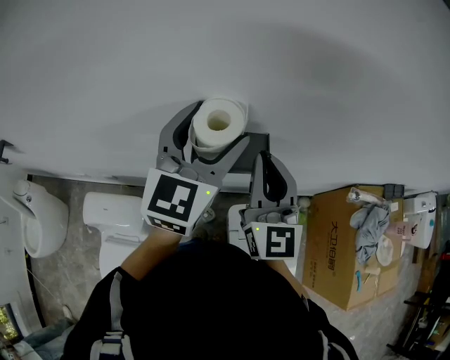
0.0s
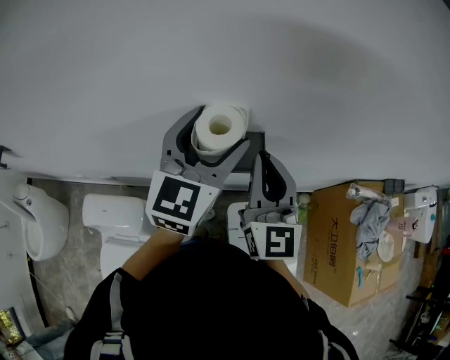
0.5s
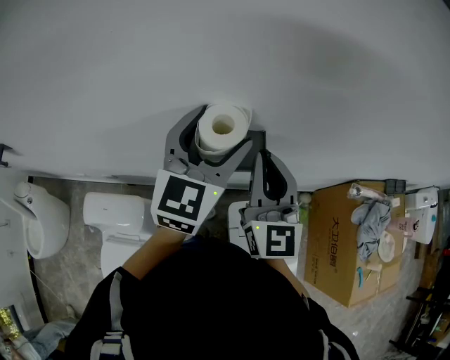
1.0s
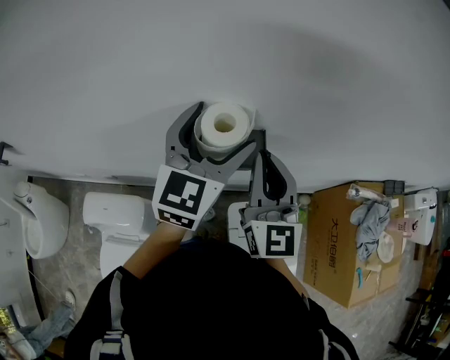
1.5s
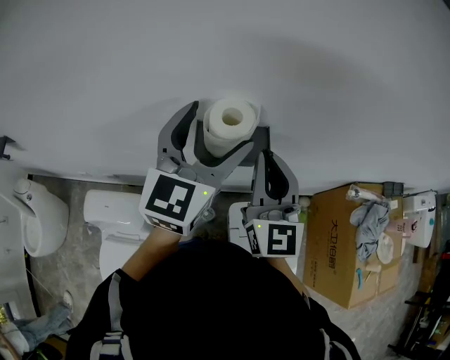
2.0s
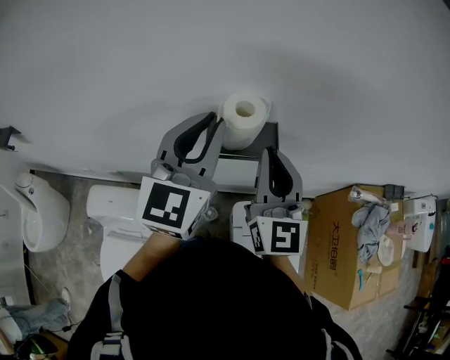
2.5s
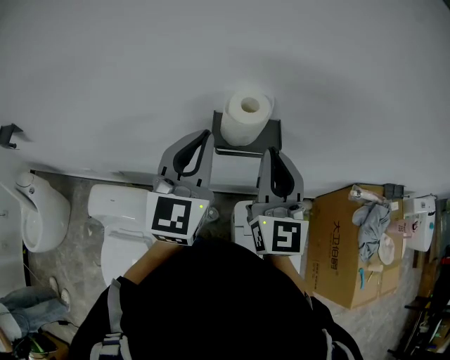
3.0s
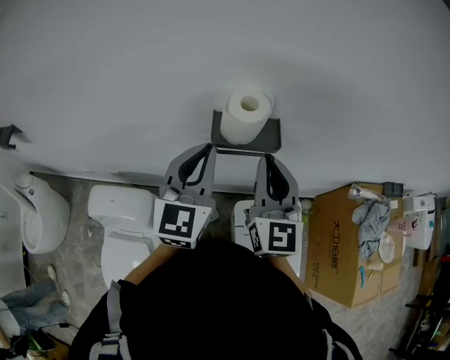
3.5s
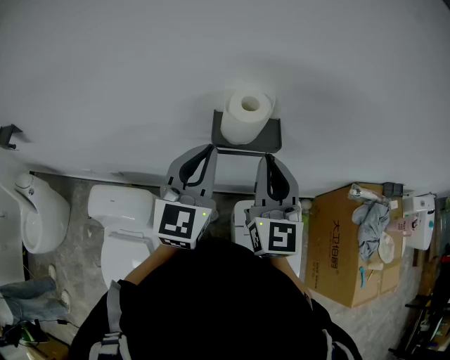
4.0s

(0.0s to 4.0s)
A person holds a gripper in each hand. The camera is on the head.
0.0s - 2.0s: The grippers move only a little.
2.0s - 4.0s: The left gripper is displaced backward, downward and to the left by about 10 cm, and closes up.

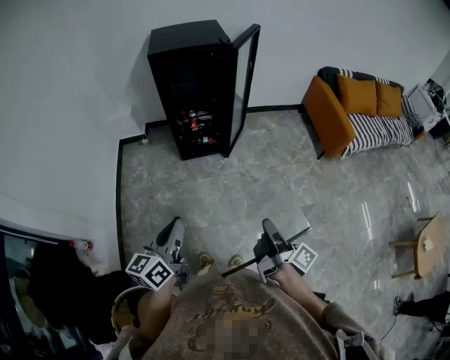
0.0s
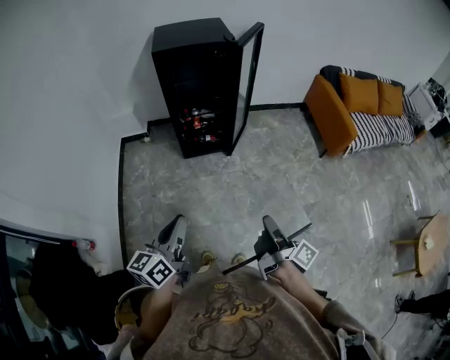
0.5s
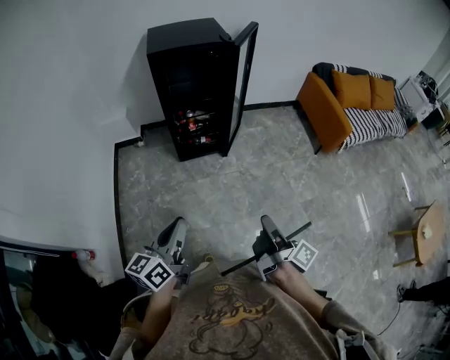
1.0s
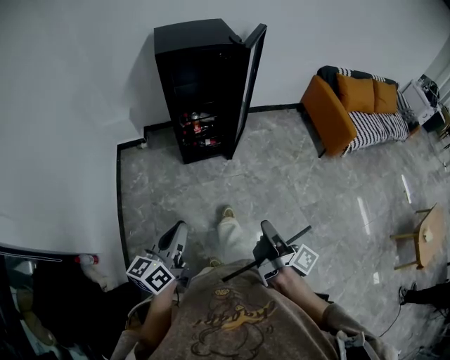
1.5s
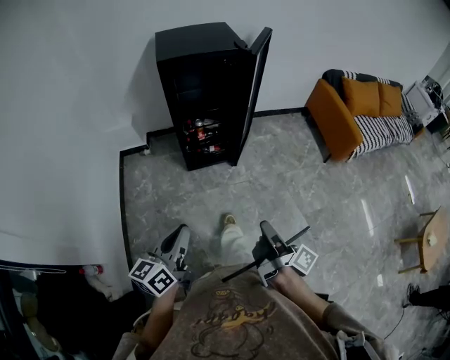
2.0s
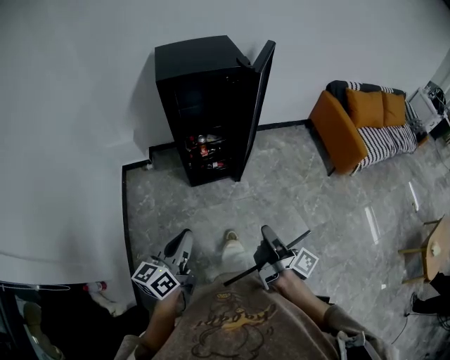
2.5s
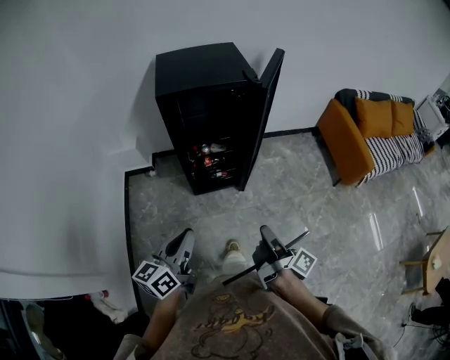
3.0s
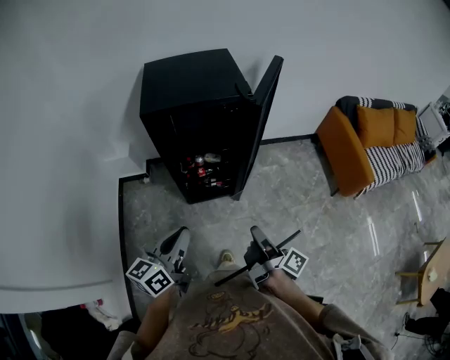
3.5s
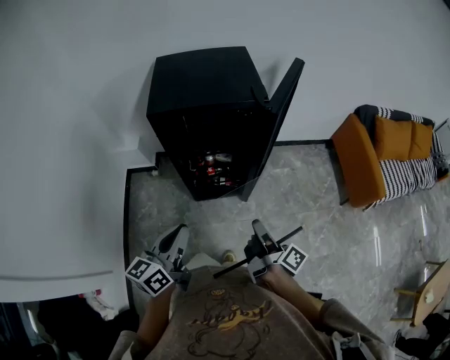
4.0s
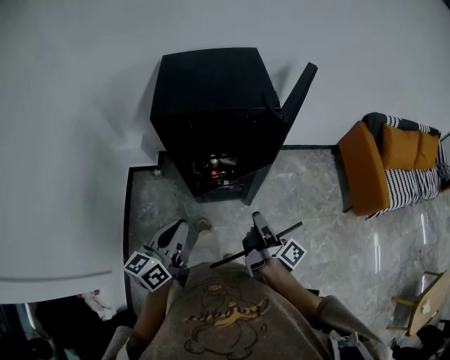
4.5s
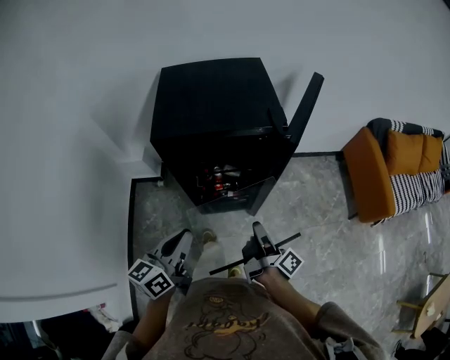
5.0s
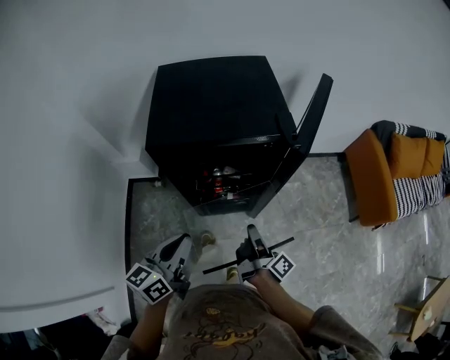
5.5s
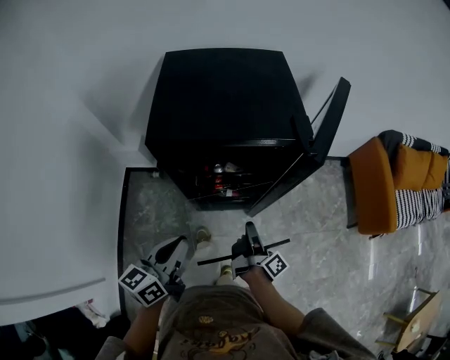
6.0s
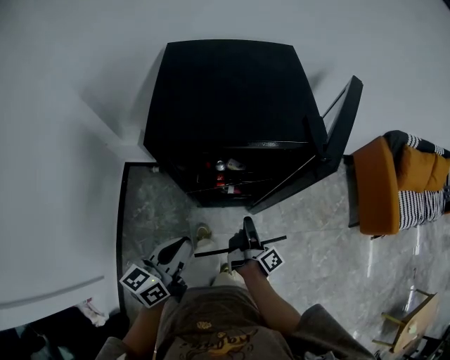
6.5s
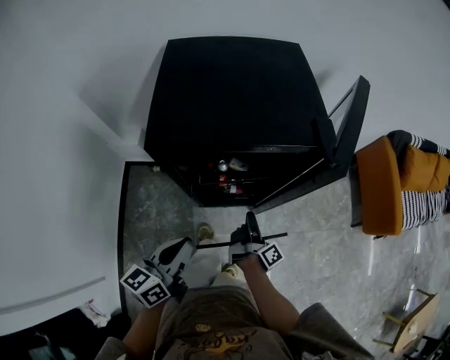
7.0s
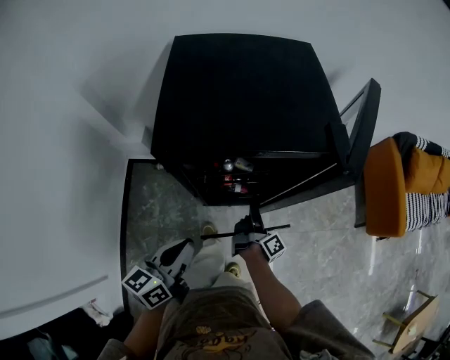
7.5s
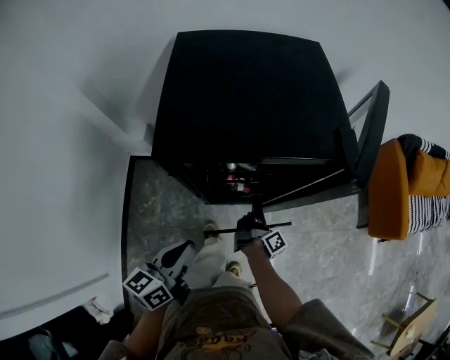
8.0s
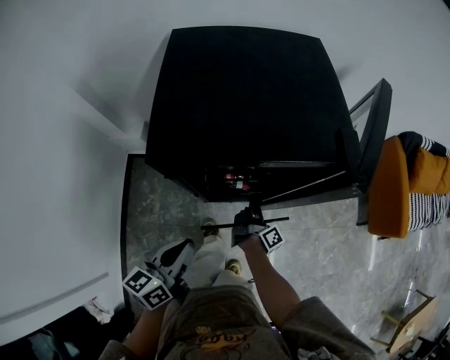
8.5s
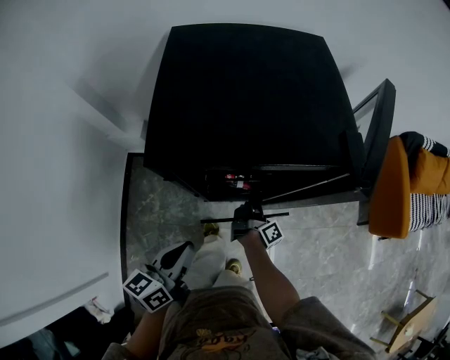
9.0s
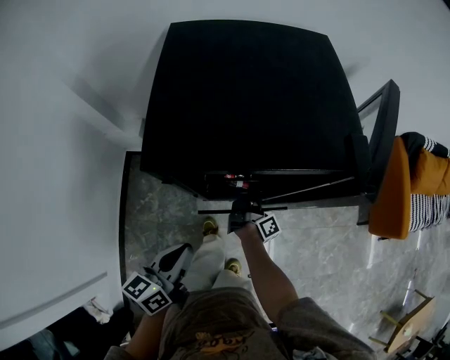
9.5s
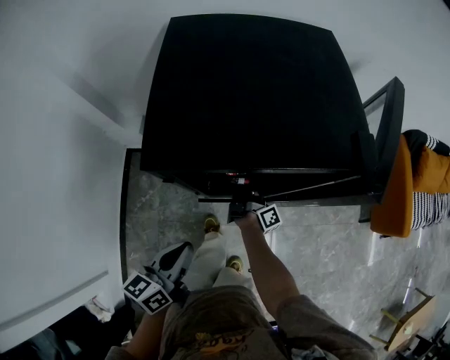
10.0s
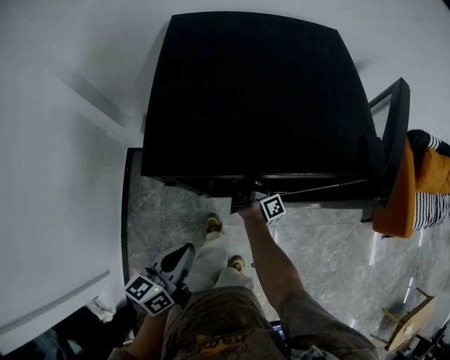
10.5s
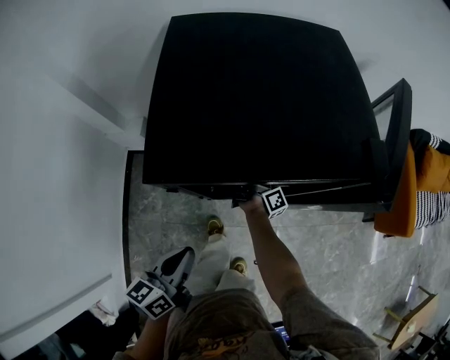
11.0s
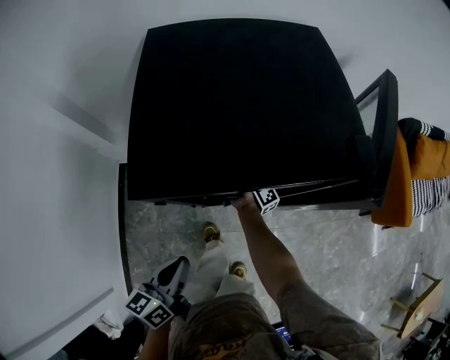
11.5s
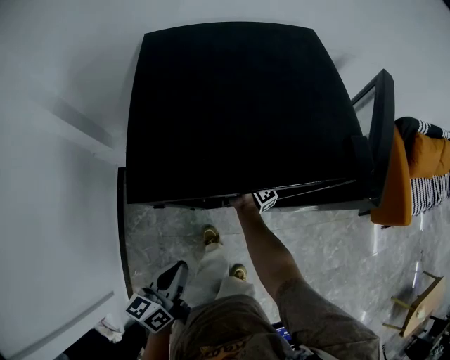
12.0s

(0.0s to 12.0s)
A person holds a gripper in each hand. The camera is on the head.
0.0s - 2.0s: The left gripper ends up some 10 cm from where it was.
2.0s - 4.0s: The left gripper shifts by roughly 30 cm.
4.0s - 6.0s: The left gripper shifts by about 15 cm.
6.0s - 8.0s: The left gripper shifts about 5 cm downward.

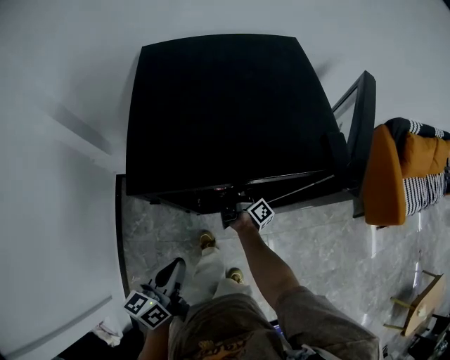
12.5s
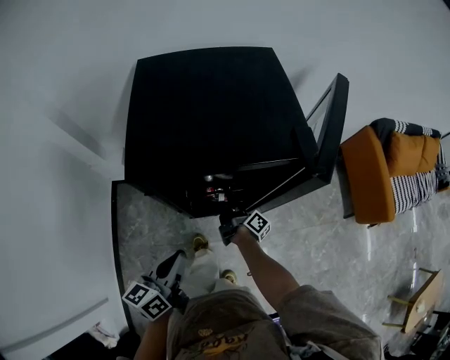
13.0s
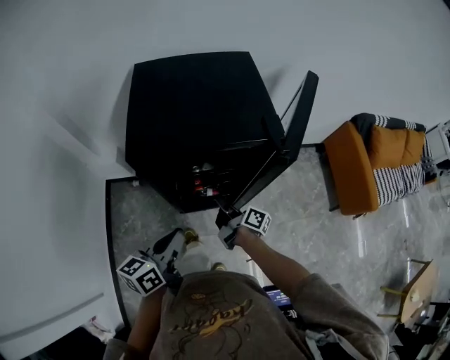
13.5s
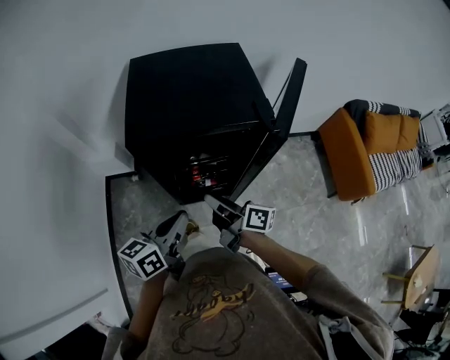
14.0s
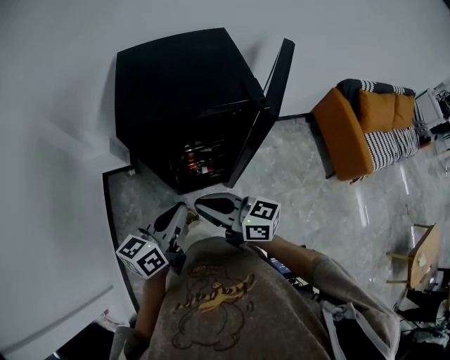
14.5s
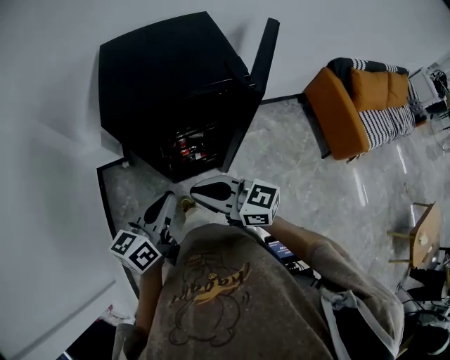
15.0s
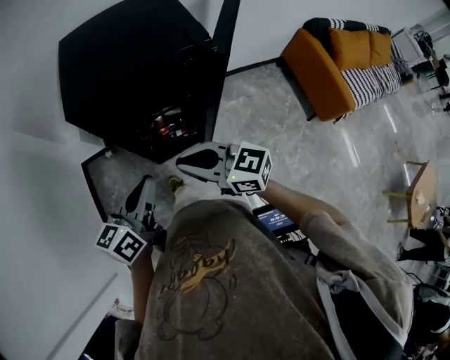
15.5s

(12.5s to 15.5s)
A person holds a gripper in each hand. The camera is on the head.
12.5s - 14.0s: The left gripper moves upward, about 10 cm.

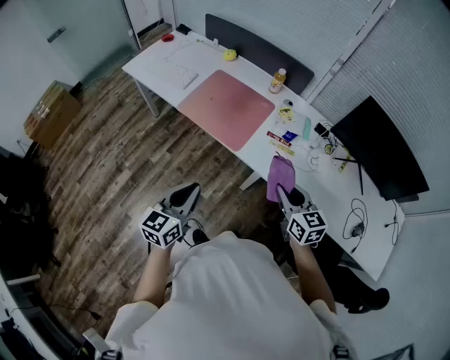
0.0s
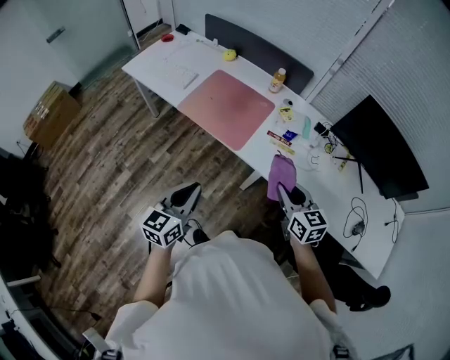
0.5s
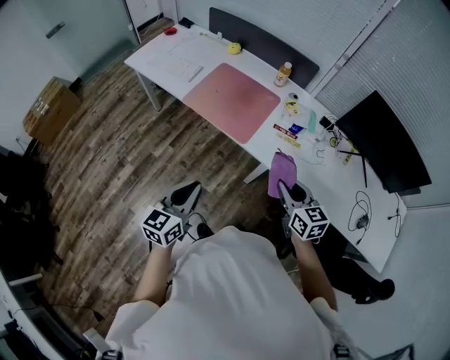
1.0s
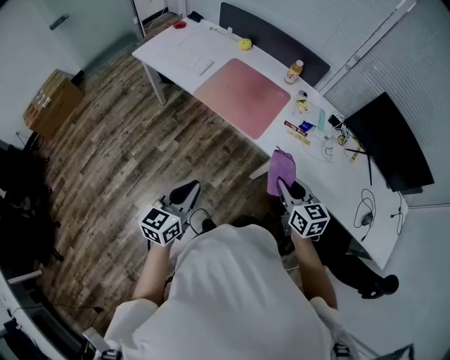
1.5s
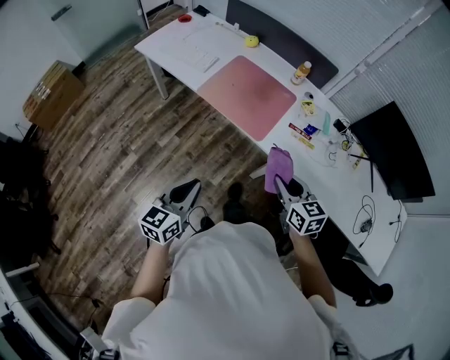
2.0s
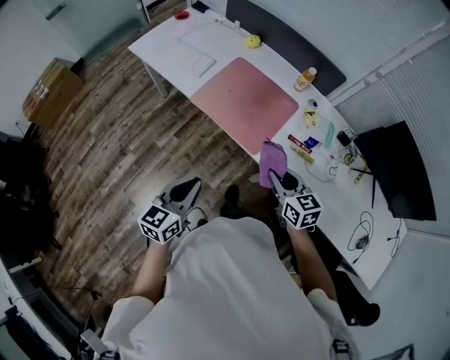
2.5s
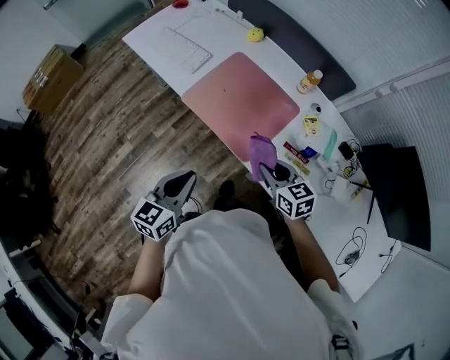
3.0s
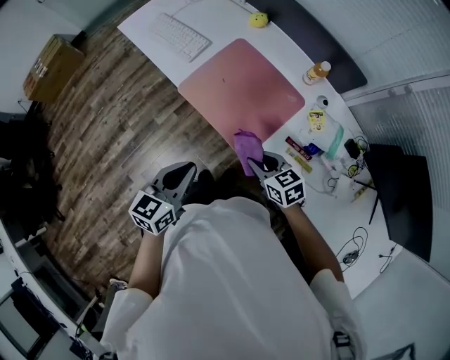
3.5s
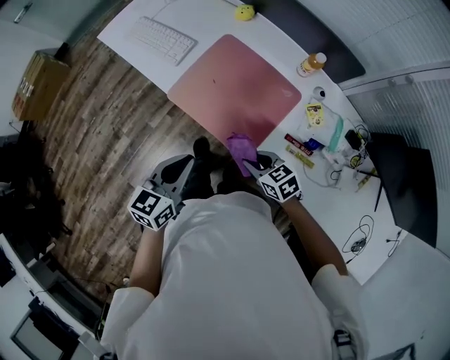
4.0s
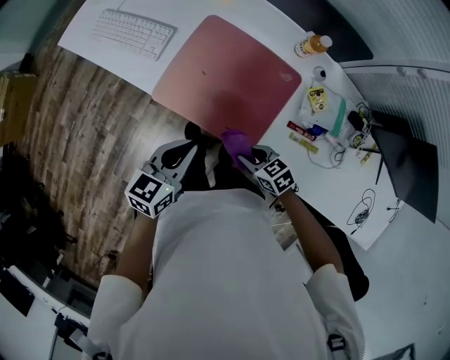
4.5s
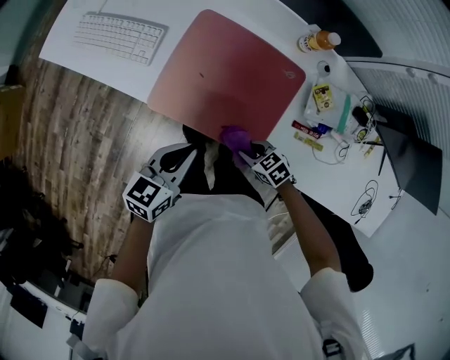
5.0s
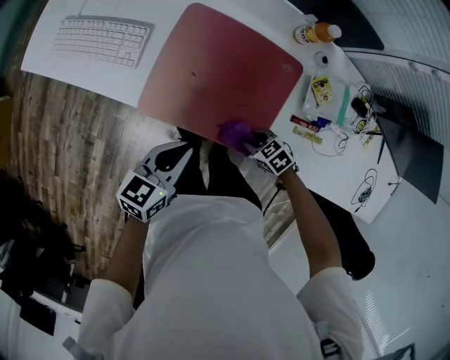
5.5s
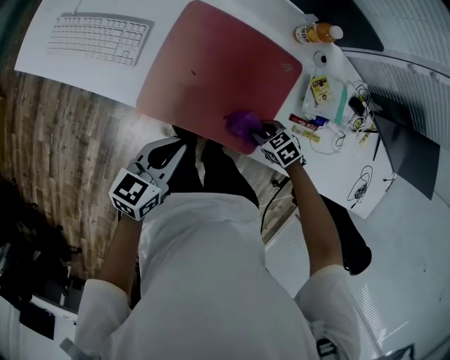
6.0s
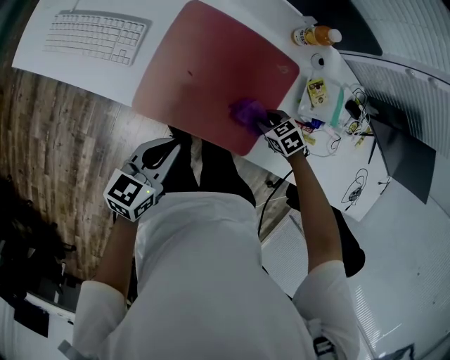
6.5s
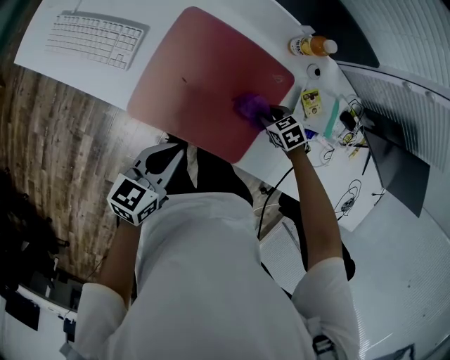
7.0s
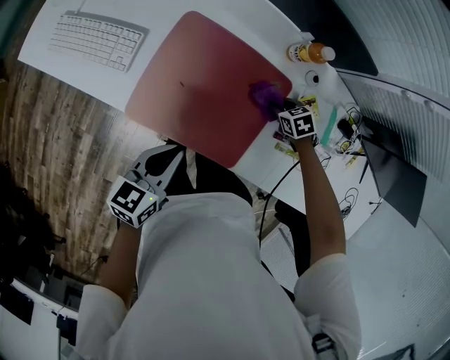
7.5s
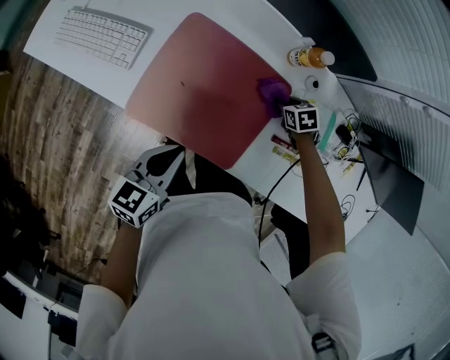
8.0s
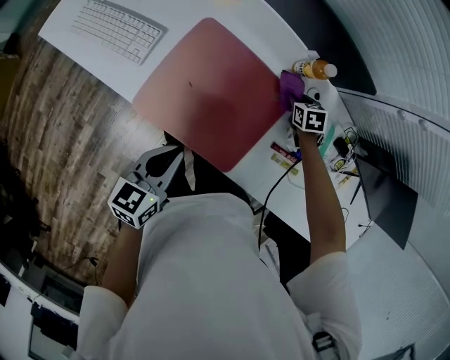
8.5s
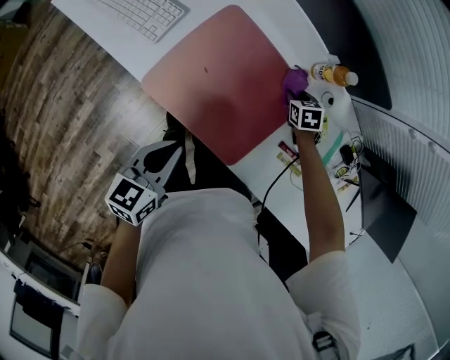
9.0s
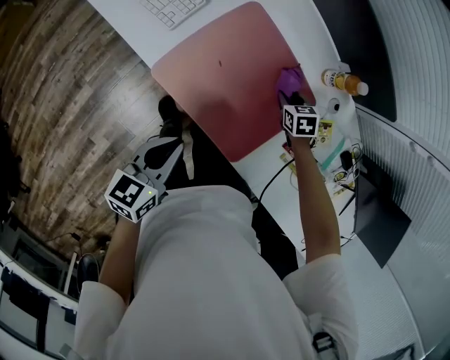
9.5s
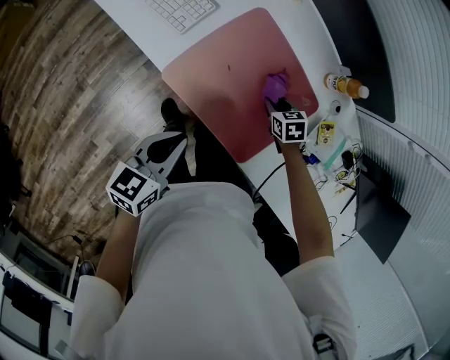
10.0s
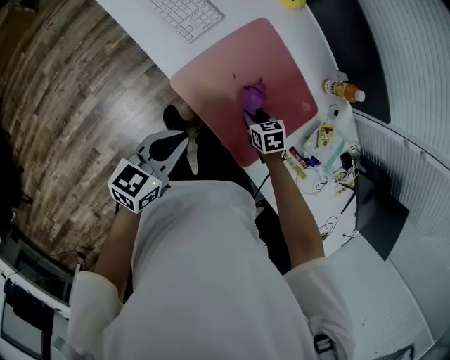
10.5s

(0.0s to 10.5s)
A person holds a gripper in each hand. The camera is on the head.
0.0s - 2.0s: The two grippers go roughly 10 cm to the left.
2.0s - 4.0s: The left gripper moves forward and to the right, some 30 cm; the right gripper is displaced forward and downward by some 30 cm, and turns by roughly 40 degrees.
4.0s - 6.5s: The left gripper ends up approximately 20 cm from where it was, and swivels some 30 degrees, while the right gripper moves downward, some 15 cm, and turns by about 30 degrees.
6.5s - 8.5s: The right gripper changes place by approximately 25 cm, and turns by about 30 degrees, while the left gripper shifts by some 5 cm.
8.5s - 10.5s: The right gripper changes place by some 30 cm, and rotates some 20 degrees. The left gripper moves about 10 cm.
